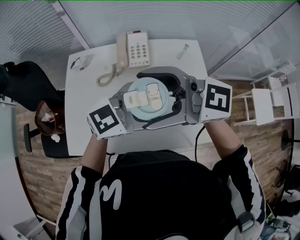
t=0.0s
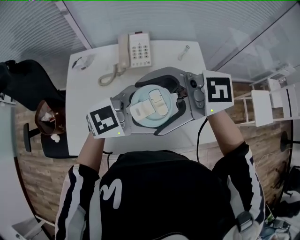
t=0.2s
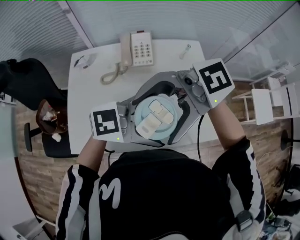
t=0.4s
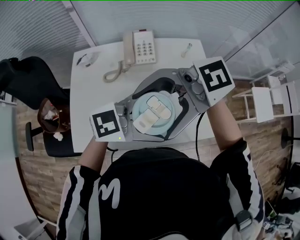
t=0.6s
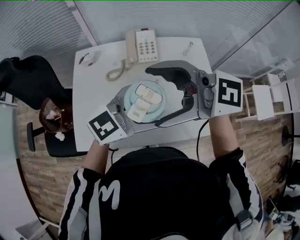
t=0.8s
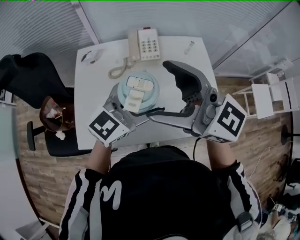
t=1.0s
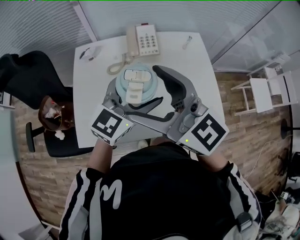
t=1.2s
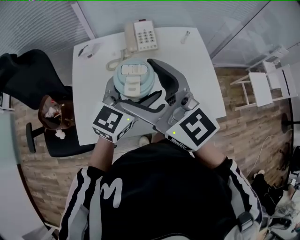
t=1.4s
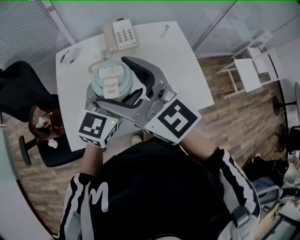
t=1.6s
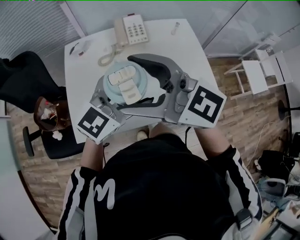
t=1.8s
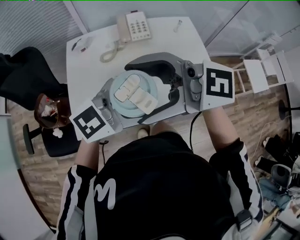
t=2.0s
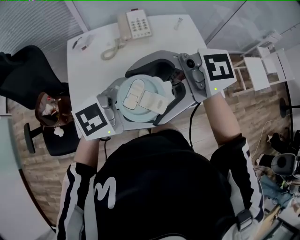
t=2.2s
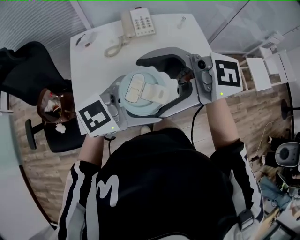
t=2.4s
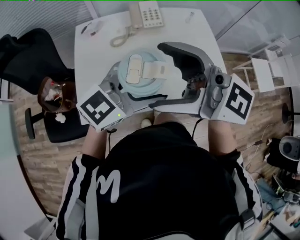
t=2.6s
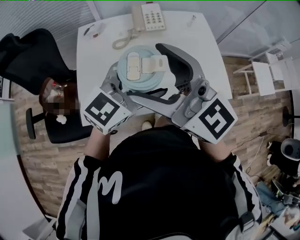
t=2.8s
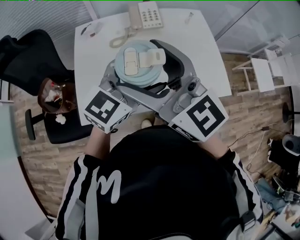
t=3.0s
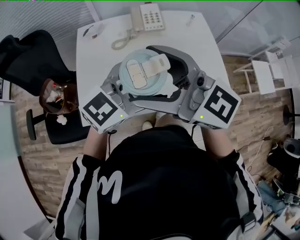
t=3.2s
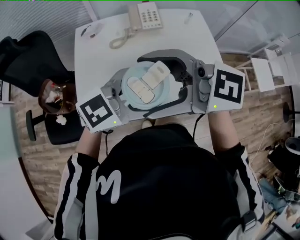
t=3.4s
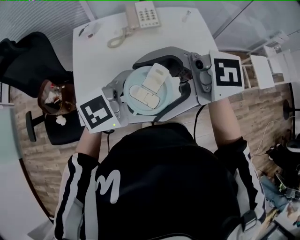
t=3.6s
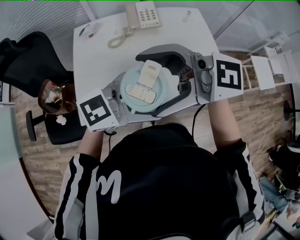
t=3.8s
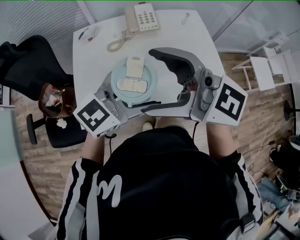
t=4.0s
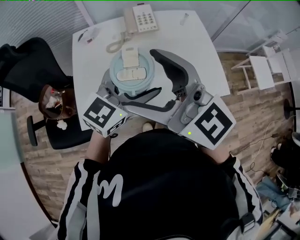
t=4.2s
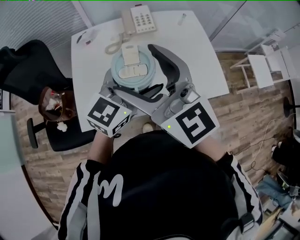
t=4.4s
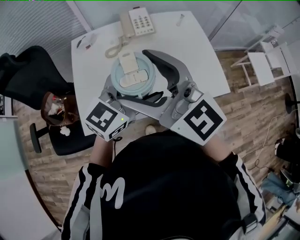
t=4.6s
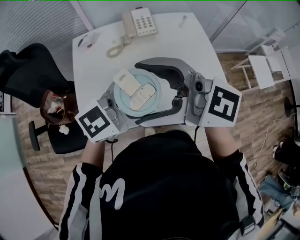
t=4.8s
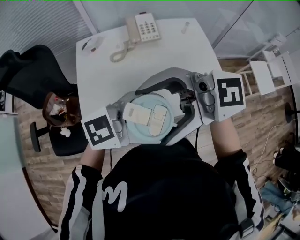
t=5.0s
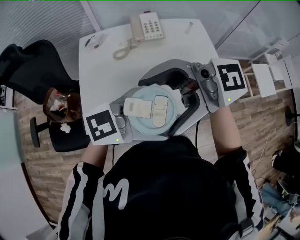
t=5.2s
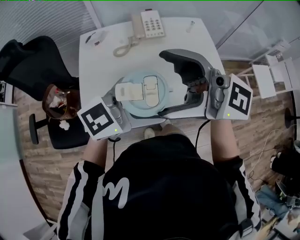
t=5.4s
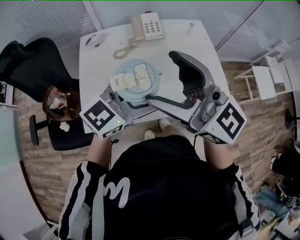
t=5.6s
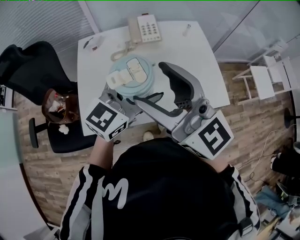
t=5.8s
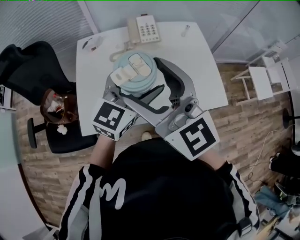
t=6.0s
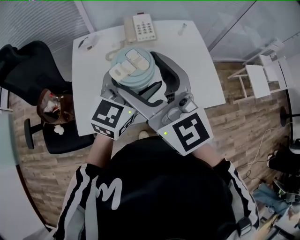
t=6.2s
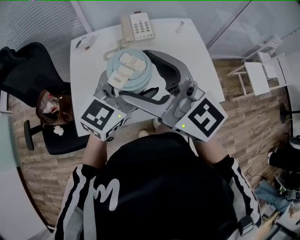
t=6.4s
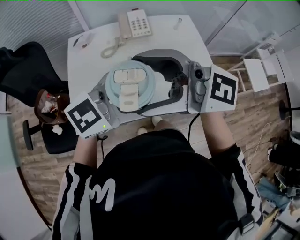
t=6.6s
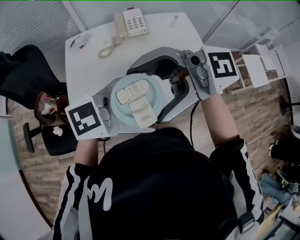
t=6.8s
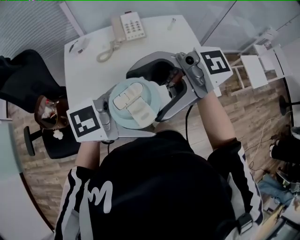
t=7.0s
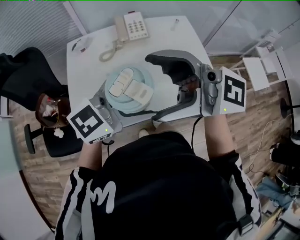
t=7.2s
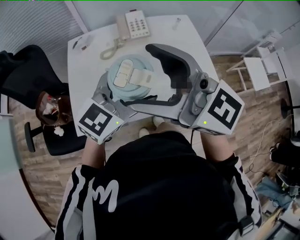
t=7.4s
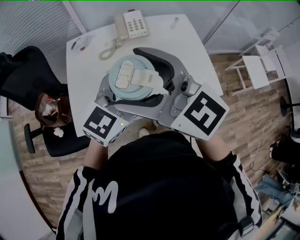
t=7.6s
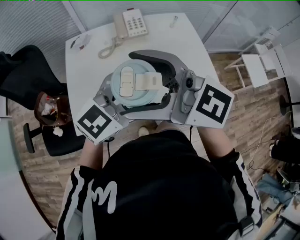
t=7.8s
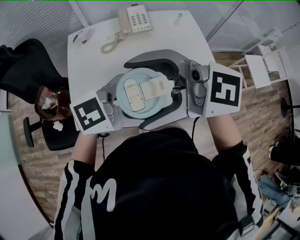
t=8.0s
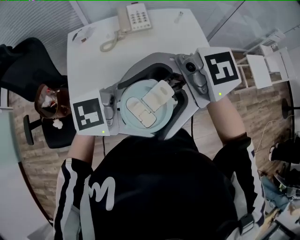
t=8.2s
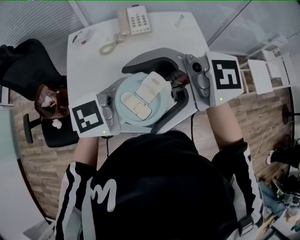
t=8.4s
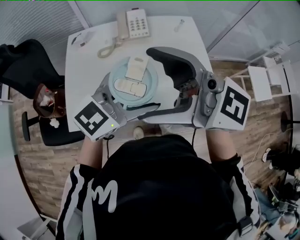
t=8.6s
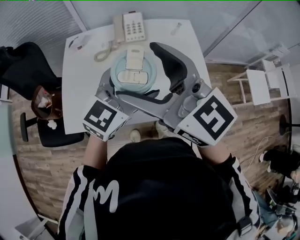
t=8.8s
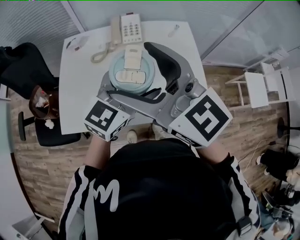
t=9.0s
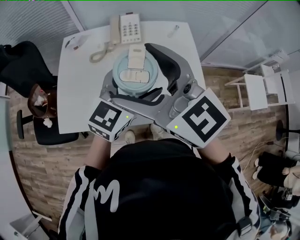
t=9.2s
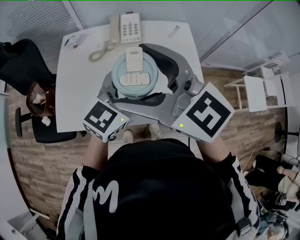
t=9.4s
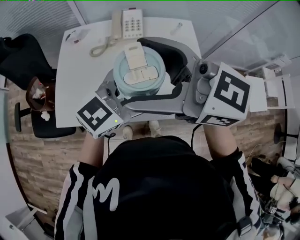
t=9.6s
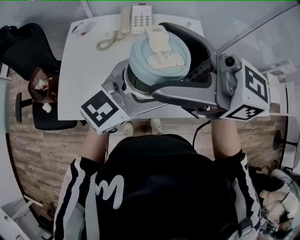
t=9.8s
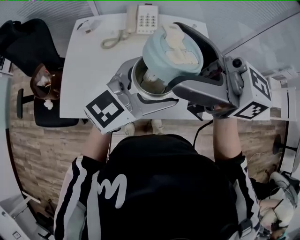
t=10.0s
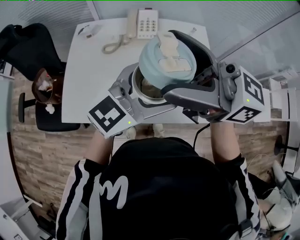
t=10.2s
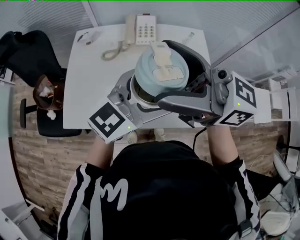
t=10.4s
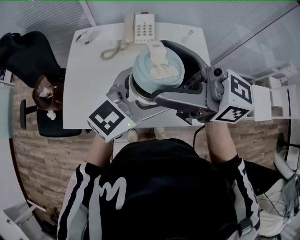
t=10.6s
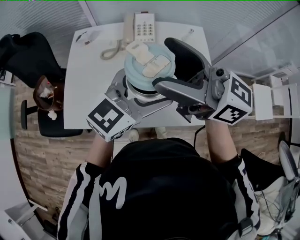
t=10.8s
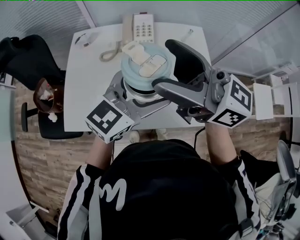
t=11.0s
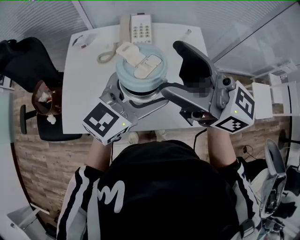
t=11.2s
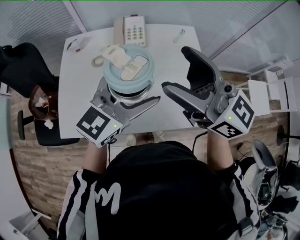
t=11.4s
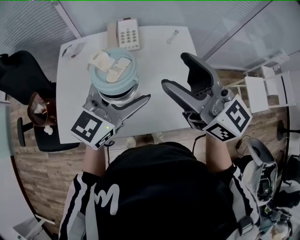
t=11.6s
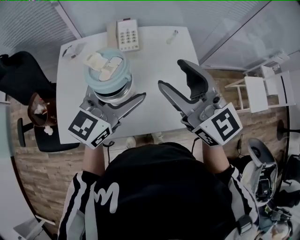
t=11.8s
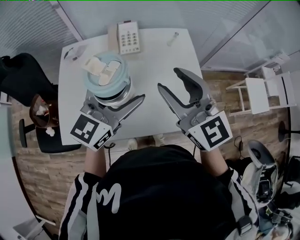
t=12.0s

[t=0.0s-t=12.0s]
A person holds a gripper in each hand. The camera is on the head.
t=0.0s to t=1.6s: The left gripper ends up approximately 15 cm from where it was, and turns by about 30 degrees, while the right gripper changes place by about 10 cm, and swivels roughly 40 degrees.
t=7.6s to t=9.0s: The left gripper ends up roughly 10 cm from where it was. The right gripper moves some 10 cm.
t=9.0s to t=10.4s: The right gripper moves about 5 cm, and rotates roughly 40 degrees.
t=10.4s to t=12.0s: The left gripper shifts by roughly 10 cm; the right gripper moves downward, roughly 10 cm, changes its angle by about 50 degrees, and closes up.

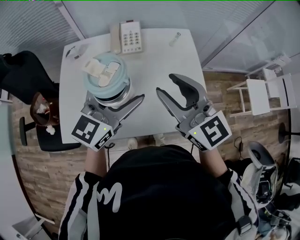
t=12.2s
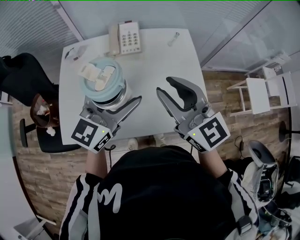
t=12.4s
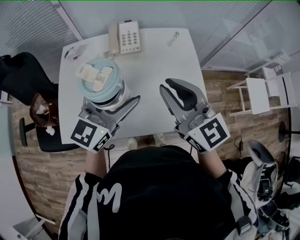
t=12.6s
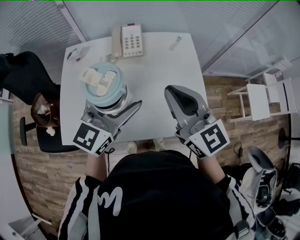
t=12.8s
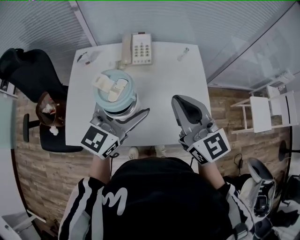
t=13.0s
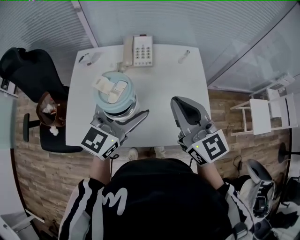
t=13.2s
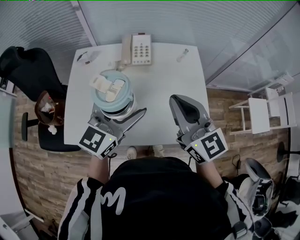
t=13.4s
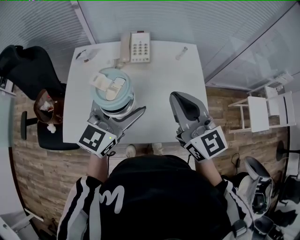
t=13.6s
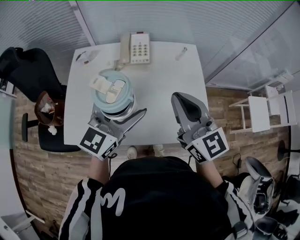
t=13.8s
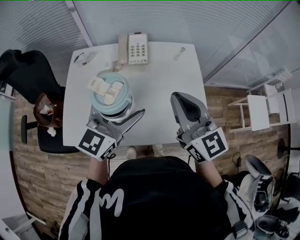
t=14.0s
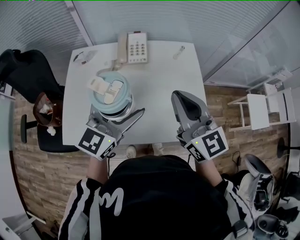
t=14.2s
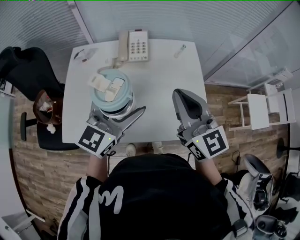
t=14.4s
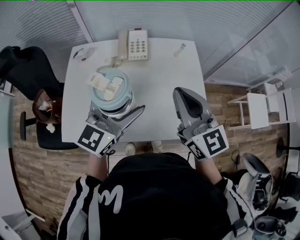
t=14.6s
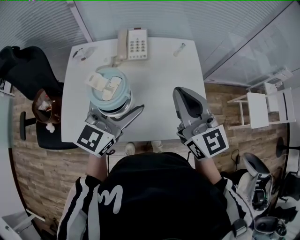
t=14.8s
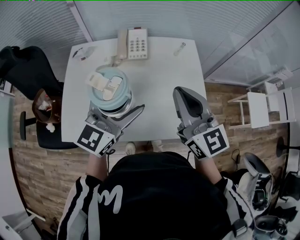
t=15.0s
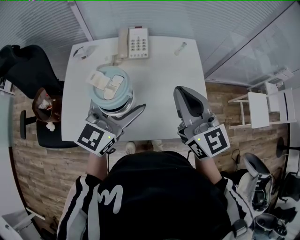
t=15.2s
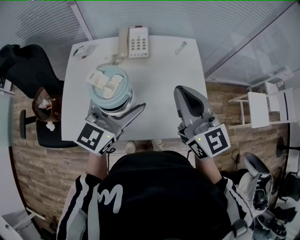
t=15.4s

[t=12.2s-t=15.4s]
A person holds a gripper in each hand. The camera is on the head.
t=12.2s to t=13.8s: The right gripper closes up.
t=13.8s to t=15.4s: The two grippers keep their place.

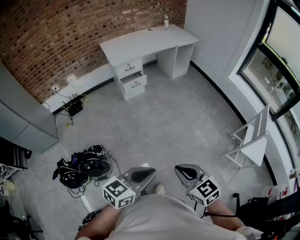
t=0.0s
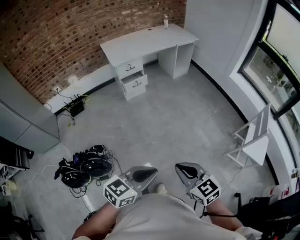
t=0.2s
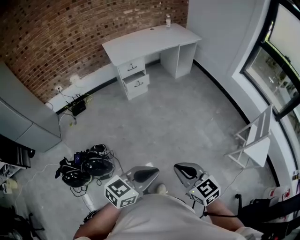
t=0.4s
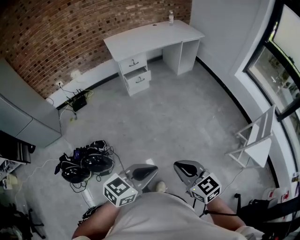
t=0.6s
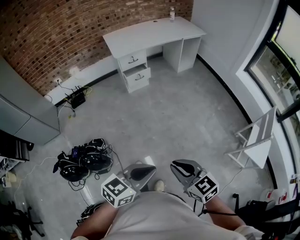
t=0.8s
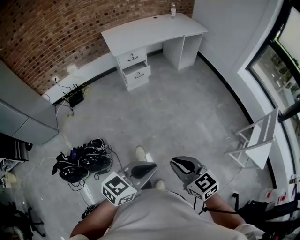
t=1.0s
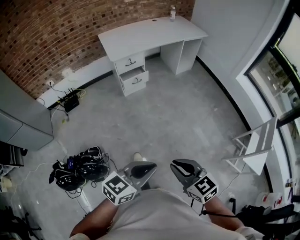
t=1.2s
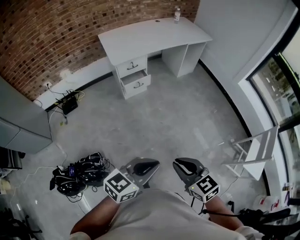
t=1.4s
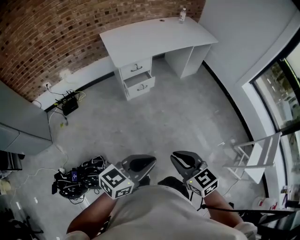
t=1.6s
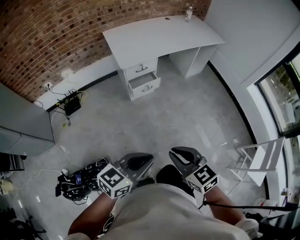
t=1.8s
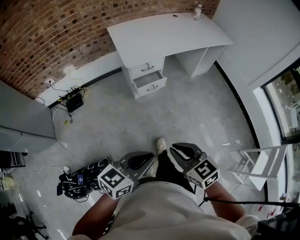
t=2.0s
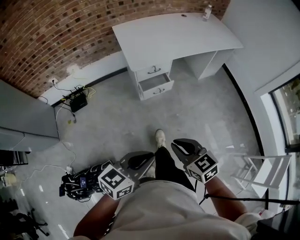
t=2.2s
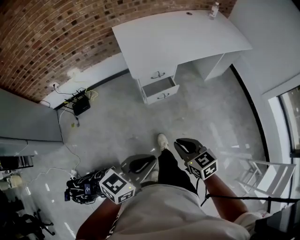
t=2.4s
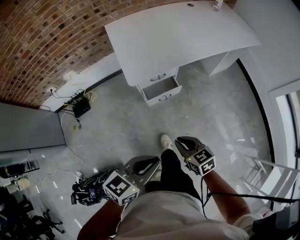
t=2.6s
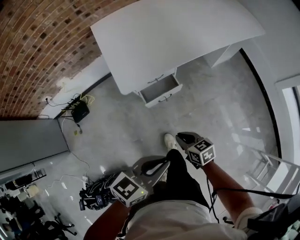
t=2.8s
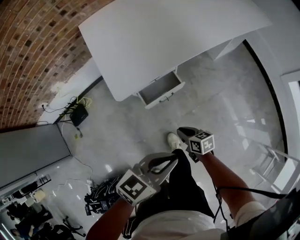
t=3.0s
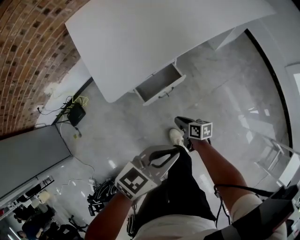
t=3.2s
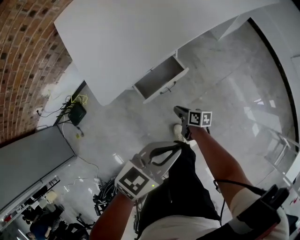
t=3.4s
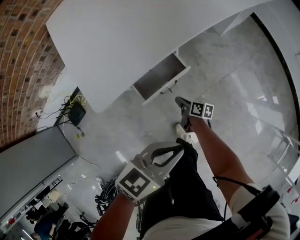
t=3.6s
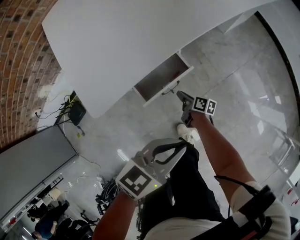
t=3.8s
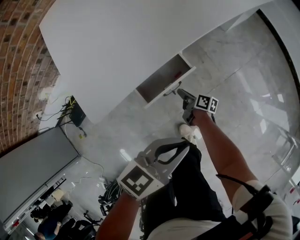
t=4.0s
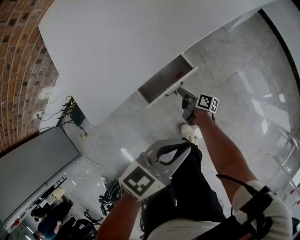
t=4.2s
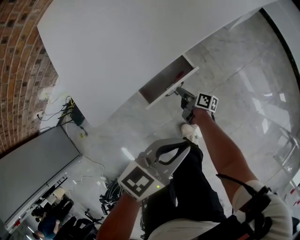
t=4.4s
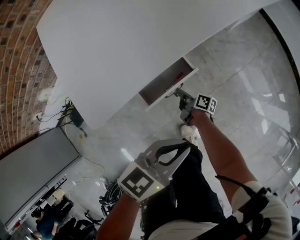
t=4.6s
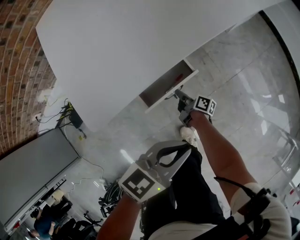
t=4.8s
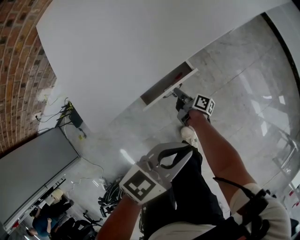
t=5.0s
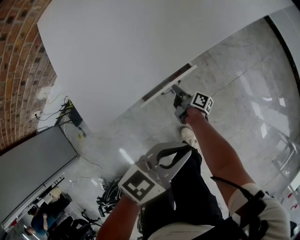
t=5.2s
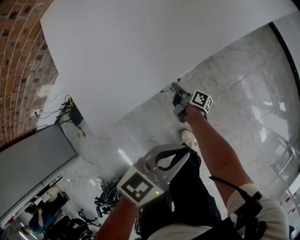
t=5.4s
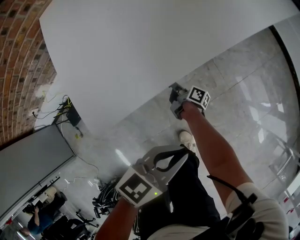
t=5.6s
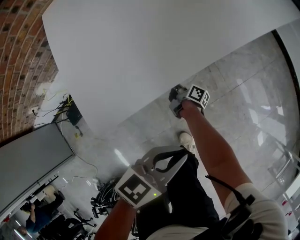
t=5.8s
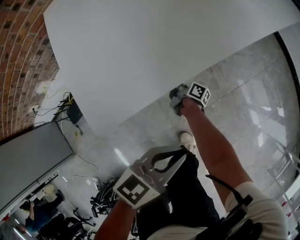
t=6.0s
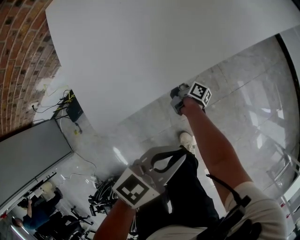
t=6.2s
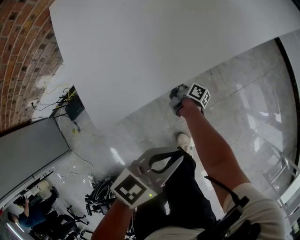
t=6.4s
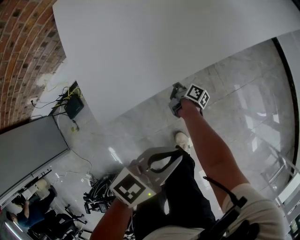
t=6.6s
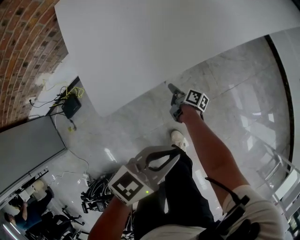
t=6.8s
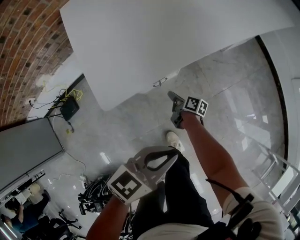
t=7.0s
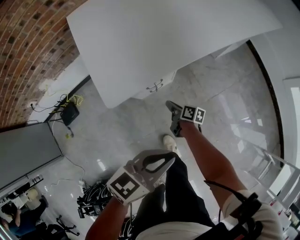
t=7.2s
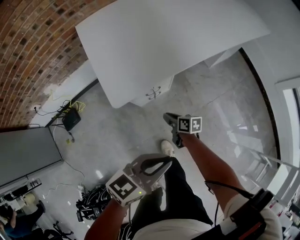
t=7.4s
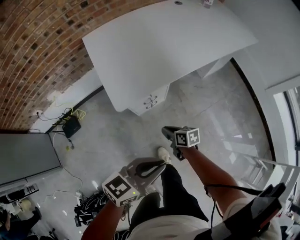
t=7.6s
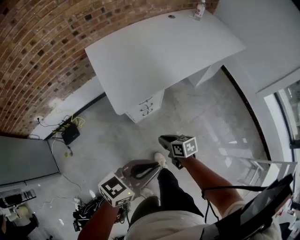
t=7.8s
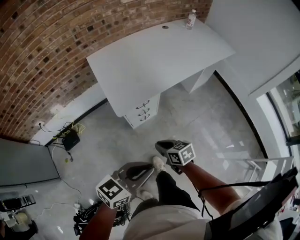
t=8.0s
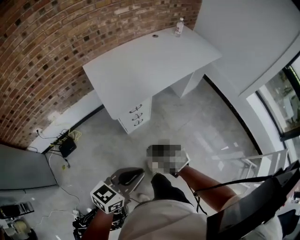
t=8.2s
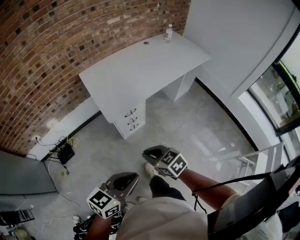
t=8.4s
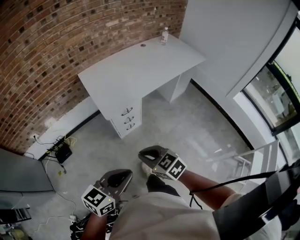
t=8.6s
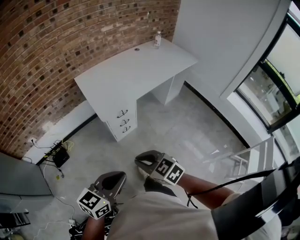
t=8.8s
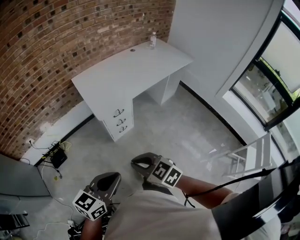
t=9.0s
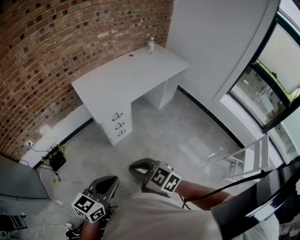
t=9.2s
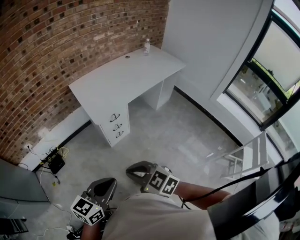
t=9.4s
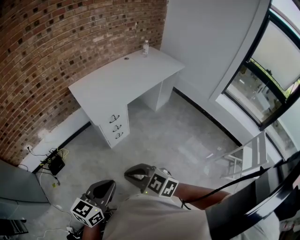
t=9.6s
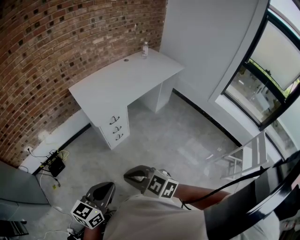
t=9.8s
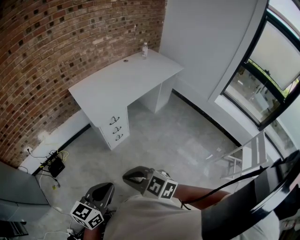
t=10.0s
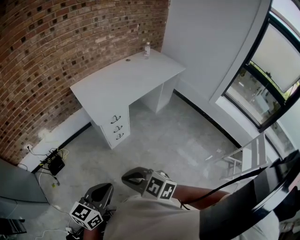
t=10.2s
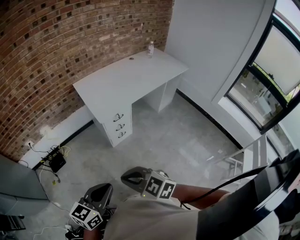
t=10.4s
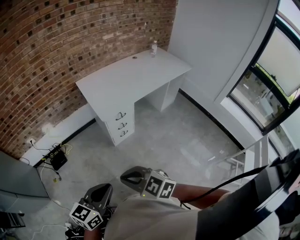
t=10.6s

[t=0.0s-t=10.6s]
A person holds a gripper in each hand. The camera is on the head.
t=0.0s to t=1.6s: The grippers both shift forward and to the left by roughly 35 cm.
t=1.6s to t=3.0s: The two grippers travel together, forward, some 50 cm. The right gripper goes some 40 cm downward, and changes its angle by approximately 40 degrees.
t=3.0s to t=4.6s: Both grippers travel together downward and forward, about 25 cm. The right gripper twists roughly 50 degrees clockwise, seen from behind.
t=4.6s to t=6.0s: The right gripper travels to the left and forward by about 10 cm.
t=6.0s to t=7.6s: Both grippers move upward and backward, some 35 cm. The right gripper twists approximately 40 degrees counterclockwise, seen from behind.
t=7.6s to t=9.0s: The right gripper goes roughly 50 cm upward and backward, and twists roughly 50 degrees counterclockwise, seen from behind. Meanwhile the left gripper goes some 30 cm backward and upward.
t=9.0s to t=10.6s: The right gripper travels backward and to the left by some 10 cm, while the left gripper shifts approximately 10 cm to the left and backward.
